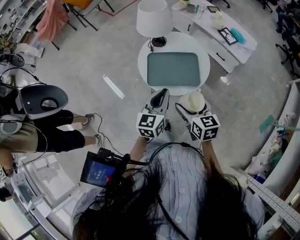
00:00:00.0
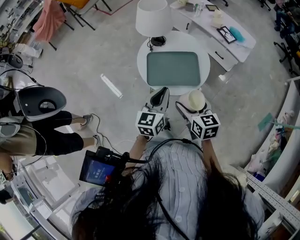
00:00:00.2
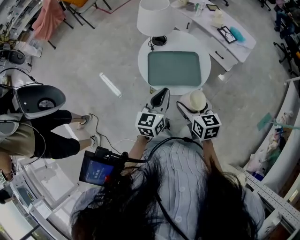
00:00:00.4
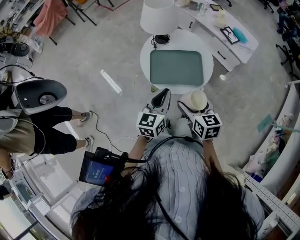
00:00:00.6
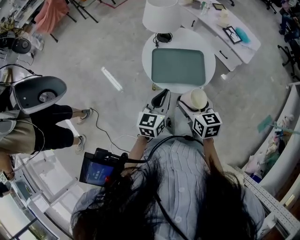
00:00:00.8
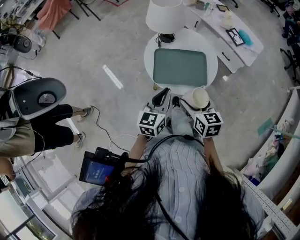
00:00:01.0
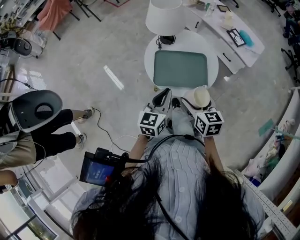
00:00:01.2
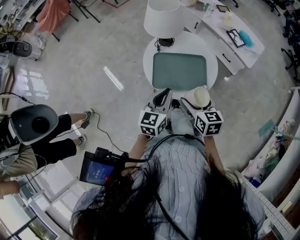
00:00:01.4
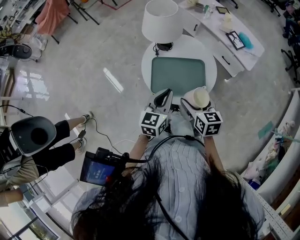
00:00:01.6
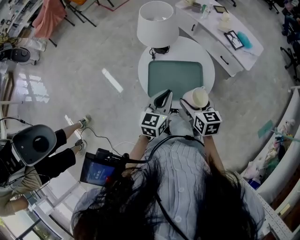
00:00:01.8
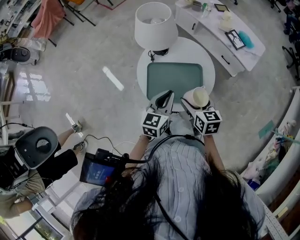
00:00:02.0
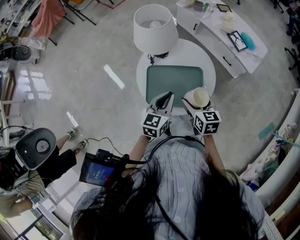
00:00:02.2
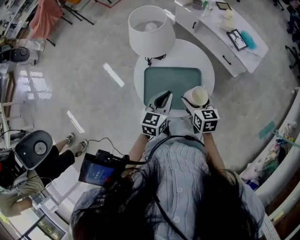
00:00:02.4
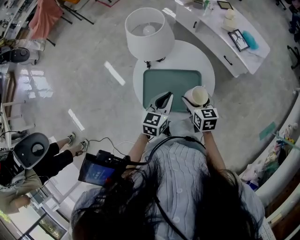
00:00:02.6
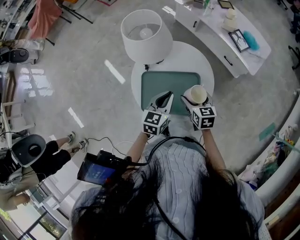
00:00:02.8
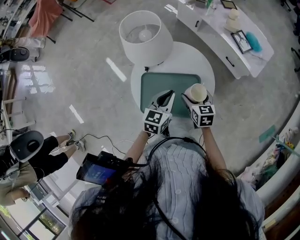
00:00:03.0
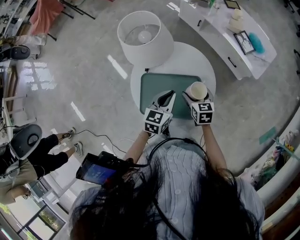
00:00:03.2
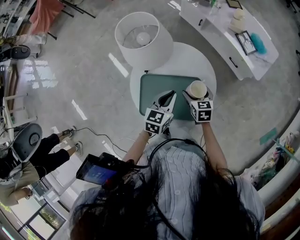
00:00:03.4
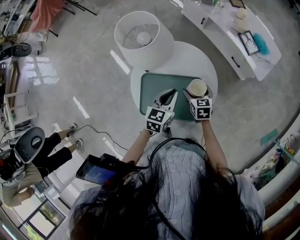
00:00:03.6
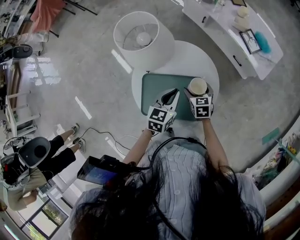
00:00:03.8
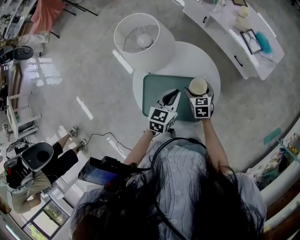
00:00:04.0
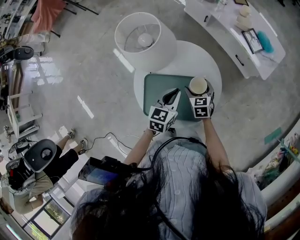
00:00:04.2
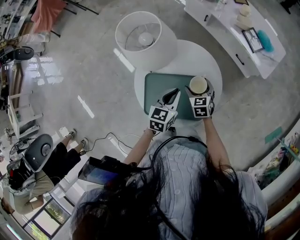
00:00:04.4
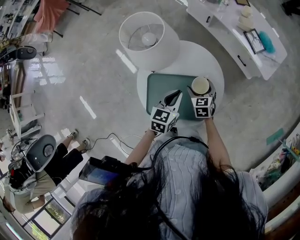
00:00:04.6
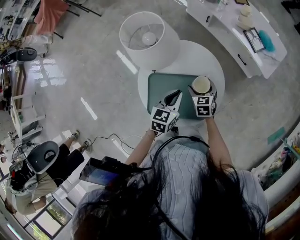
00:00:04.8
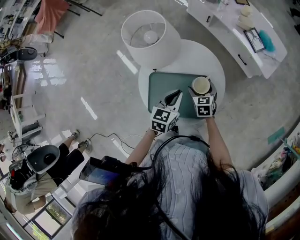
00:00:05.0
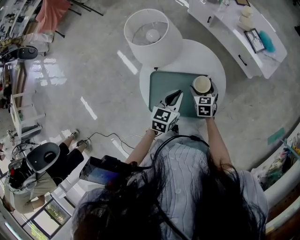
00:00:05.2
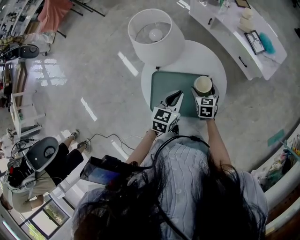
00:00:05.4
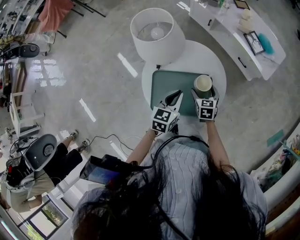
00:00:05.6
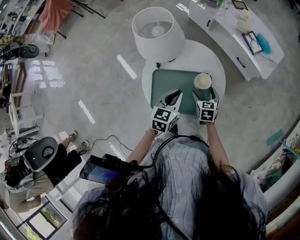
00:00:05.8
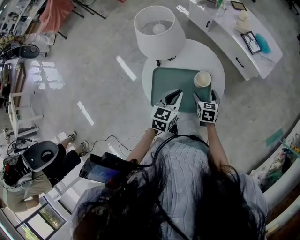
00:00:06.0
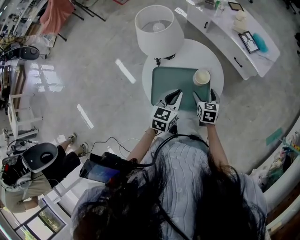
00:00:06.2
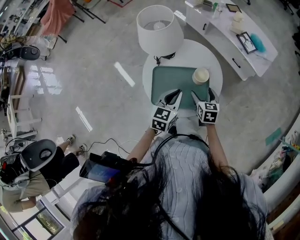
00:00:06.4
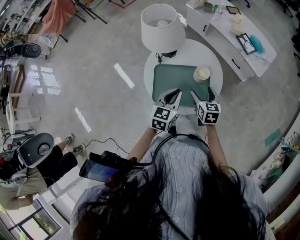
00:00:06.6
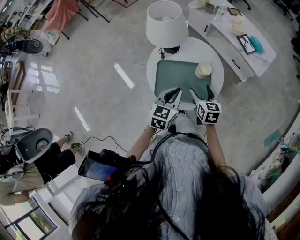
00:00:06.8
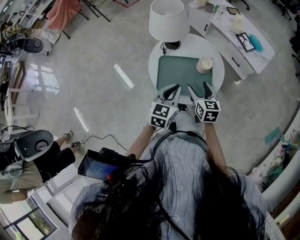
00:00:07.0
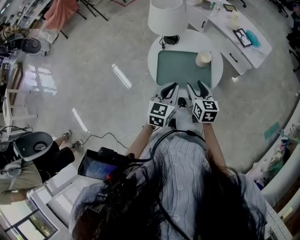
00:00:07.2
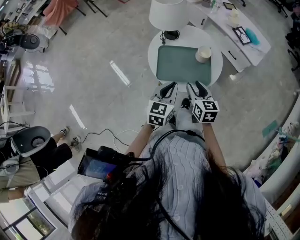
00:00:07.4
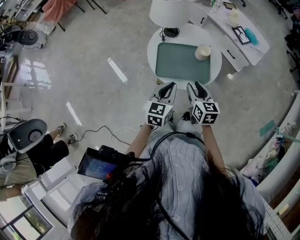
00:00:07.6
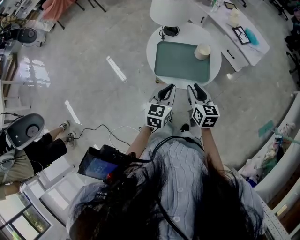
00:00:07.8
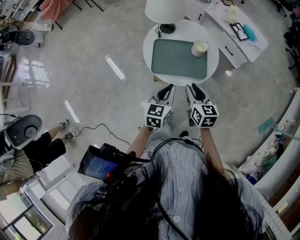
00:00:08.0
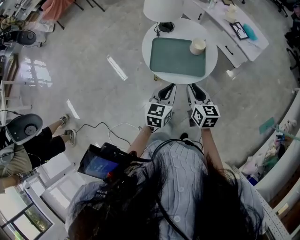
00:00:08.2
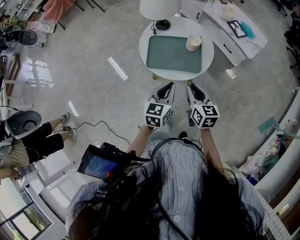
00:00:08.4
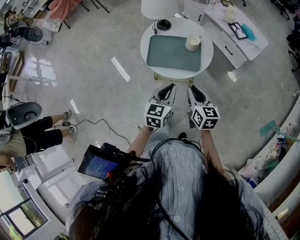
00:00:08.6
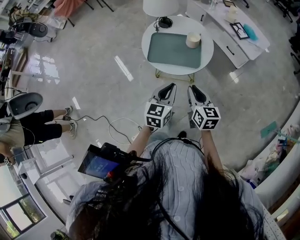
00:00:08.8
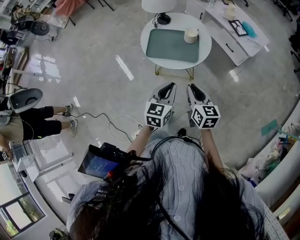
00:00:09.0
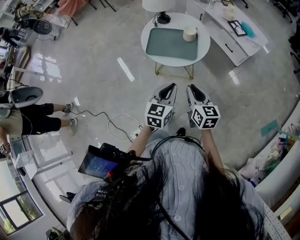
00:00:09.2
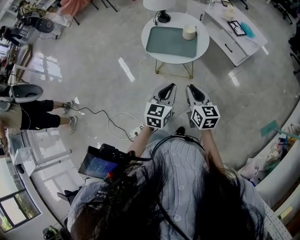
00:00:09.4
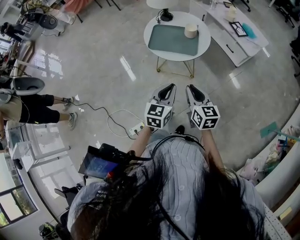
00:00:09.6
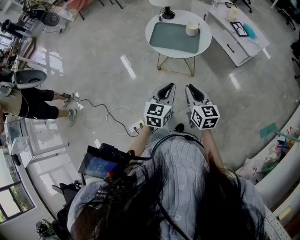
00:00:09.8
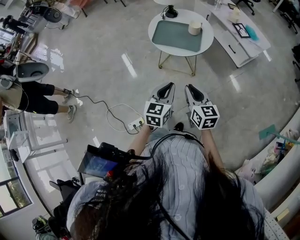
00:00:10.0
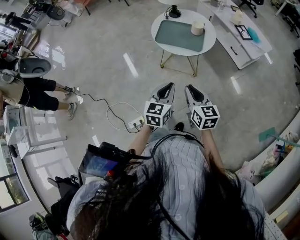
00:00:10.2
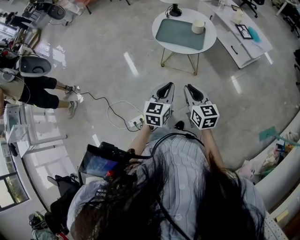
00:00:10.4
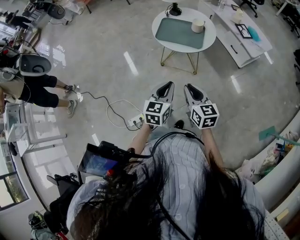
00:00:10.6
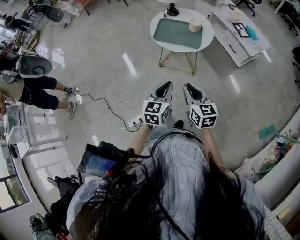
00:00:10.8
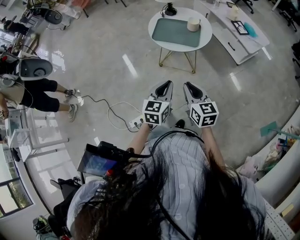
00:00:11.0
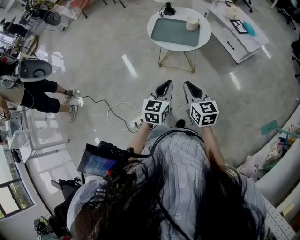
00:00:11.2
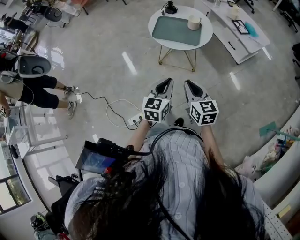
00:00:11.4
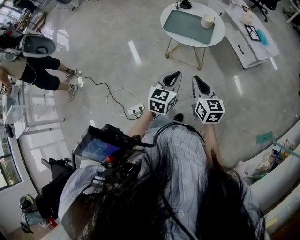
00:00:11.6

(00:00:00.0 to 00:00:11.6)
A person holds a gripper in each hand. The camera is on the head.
00:00:00.0 - 00:00:01.4: The right gripper moves forward, approximately 5 cm; the left gripper ends up about 5 cm from where it was.
00:00:01.4 - 00:00:02.8: The right gripper travels forward and downward by about 20 cm. Meanwhile the left gripper goes some 20 cm forward, downward and to the right.
00:00:02.8 - 00:00:04.4: The left gripper changes place by roughly 5 cm; the right gripper heads forward and downward, covering approximately 10 cm.
00:00:04.4 - 00:00:05.8: The left gripper moves roughly 5 cm; the right gripper travels backward by about 5 cm.
00:00:05.8 - 00:00:07.2: The left gripper travels backward and upward by approximately 15 cm; the right gripper moves upward, backward and to the left, some 20 cm, changes its angle by about 20 degrees, and closes.
00:00:07.2 - 00:00:08.8: The grippers both shift backward and to the right by approximately 15 cm. The right gripper closes up.
00:00:08.8 - 00:00:10.2: Both grippers move backward, approximately 15 cm.
00:00:10.2 - 00:00:11.6: The grippers move only a little.

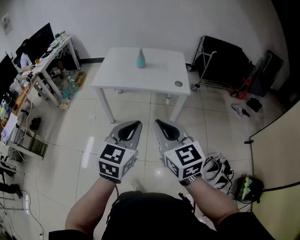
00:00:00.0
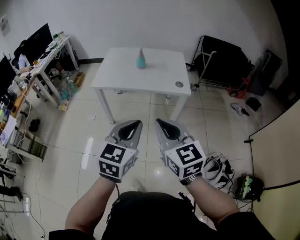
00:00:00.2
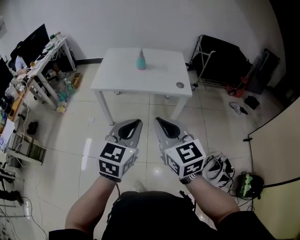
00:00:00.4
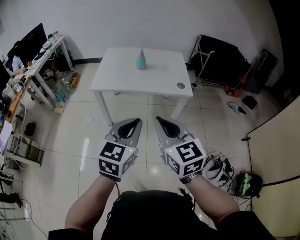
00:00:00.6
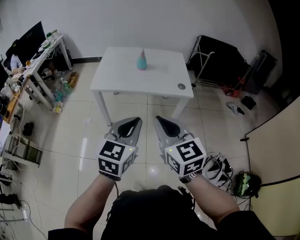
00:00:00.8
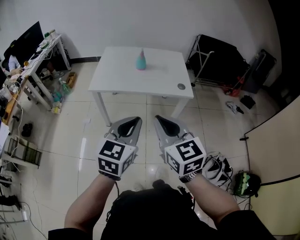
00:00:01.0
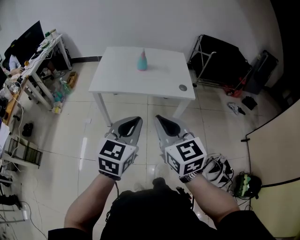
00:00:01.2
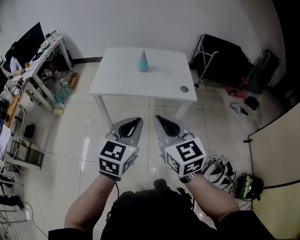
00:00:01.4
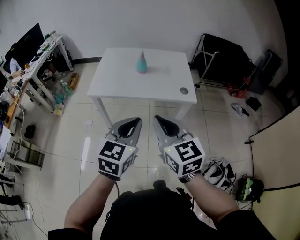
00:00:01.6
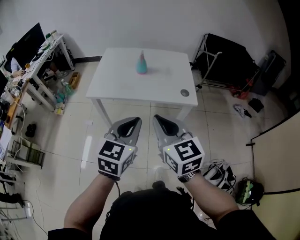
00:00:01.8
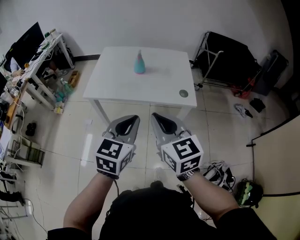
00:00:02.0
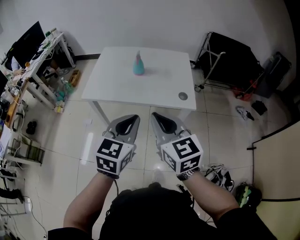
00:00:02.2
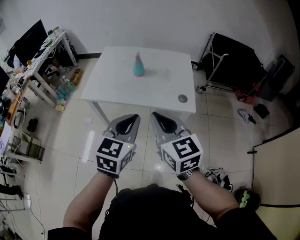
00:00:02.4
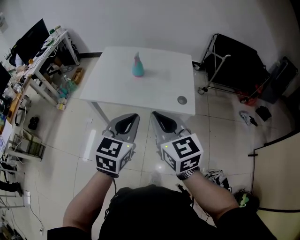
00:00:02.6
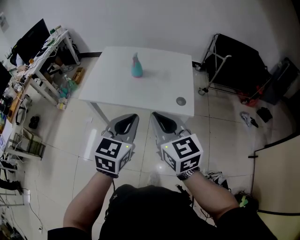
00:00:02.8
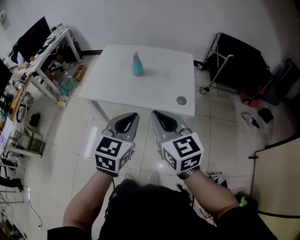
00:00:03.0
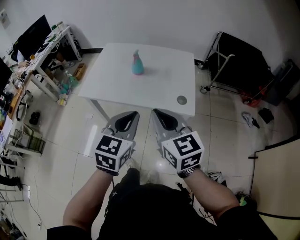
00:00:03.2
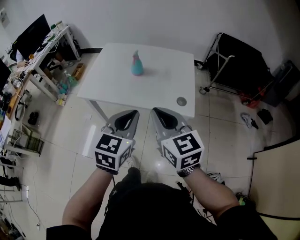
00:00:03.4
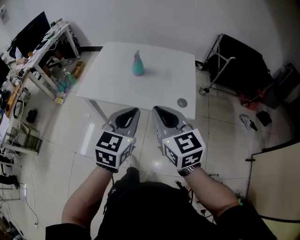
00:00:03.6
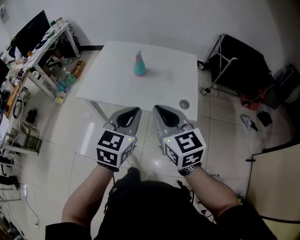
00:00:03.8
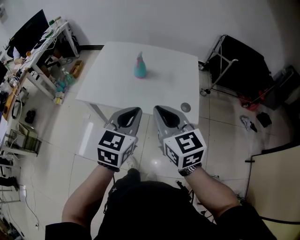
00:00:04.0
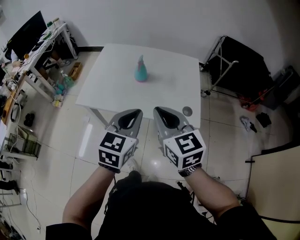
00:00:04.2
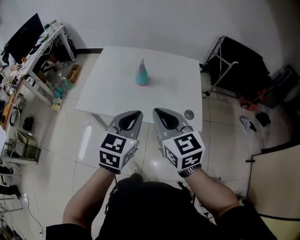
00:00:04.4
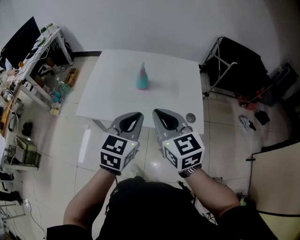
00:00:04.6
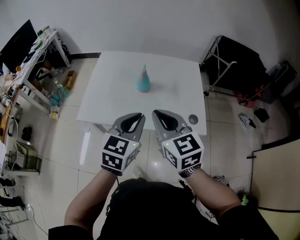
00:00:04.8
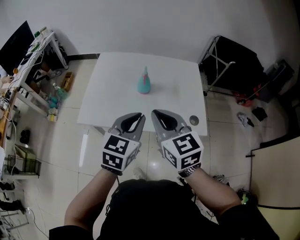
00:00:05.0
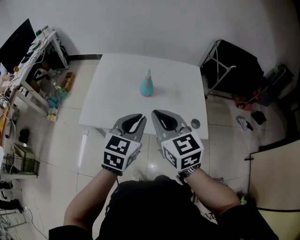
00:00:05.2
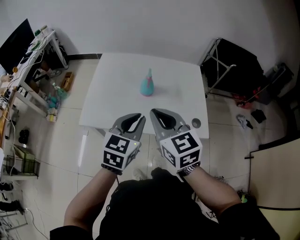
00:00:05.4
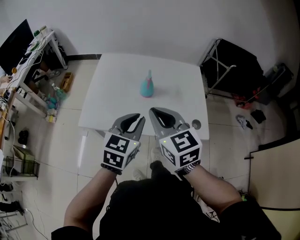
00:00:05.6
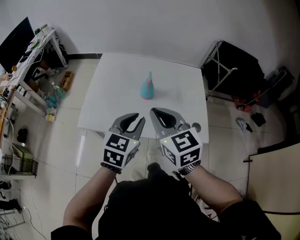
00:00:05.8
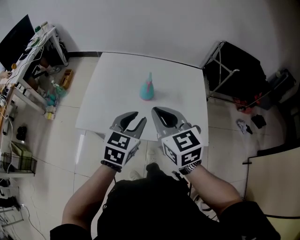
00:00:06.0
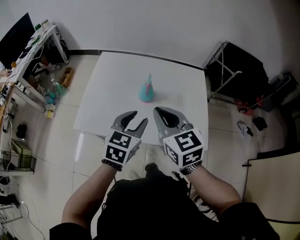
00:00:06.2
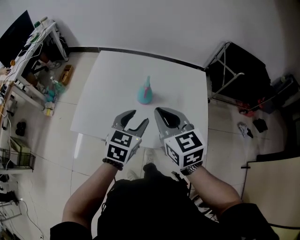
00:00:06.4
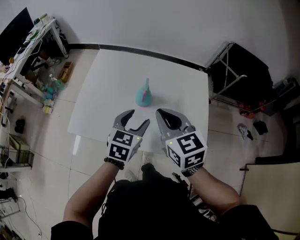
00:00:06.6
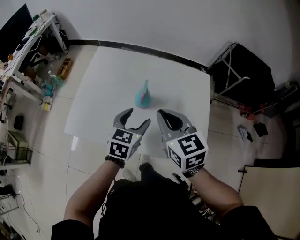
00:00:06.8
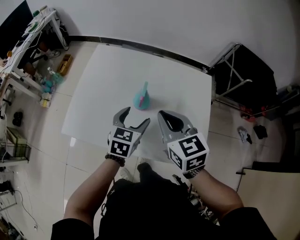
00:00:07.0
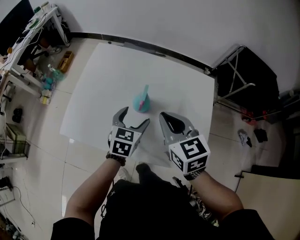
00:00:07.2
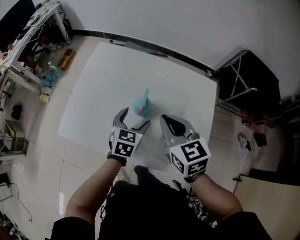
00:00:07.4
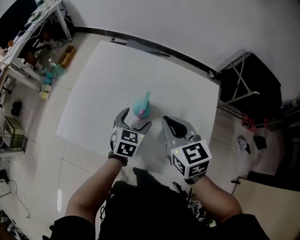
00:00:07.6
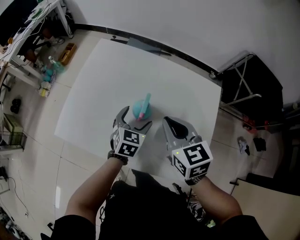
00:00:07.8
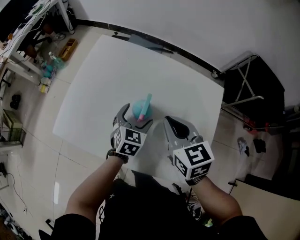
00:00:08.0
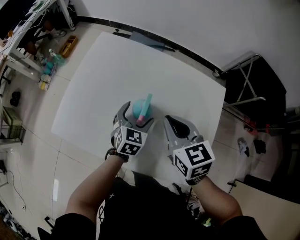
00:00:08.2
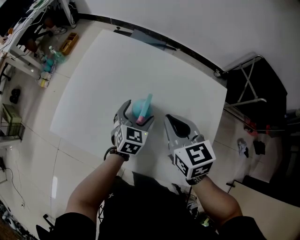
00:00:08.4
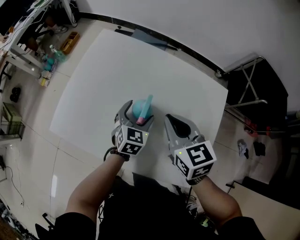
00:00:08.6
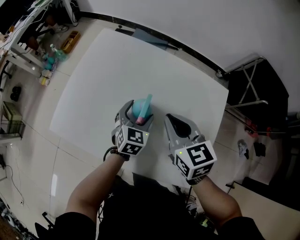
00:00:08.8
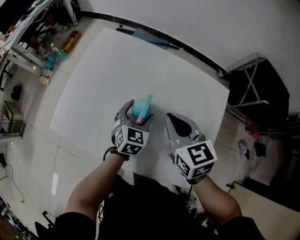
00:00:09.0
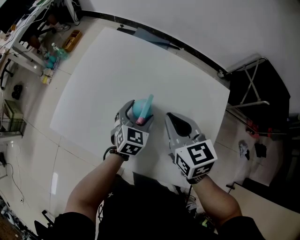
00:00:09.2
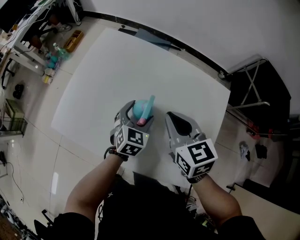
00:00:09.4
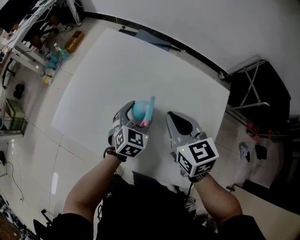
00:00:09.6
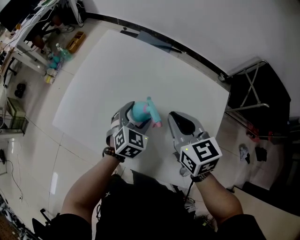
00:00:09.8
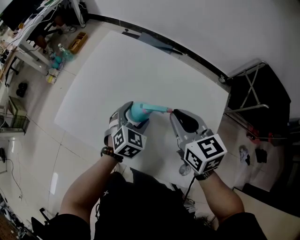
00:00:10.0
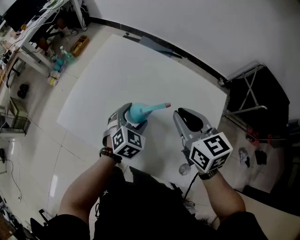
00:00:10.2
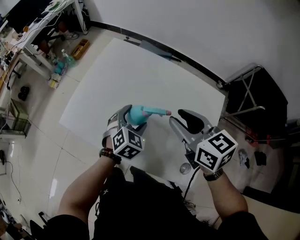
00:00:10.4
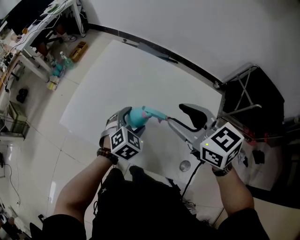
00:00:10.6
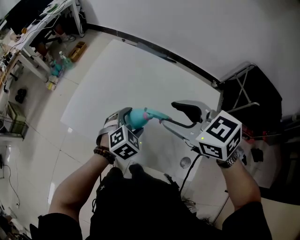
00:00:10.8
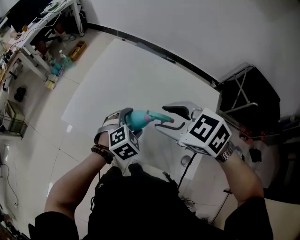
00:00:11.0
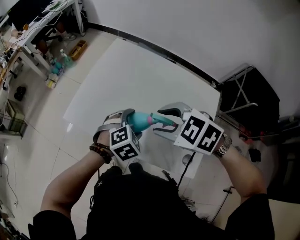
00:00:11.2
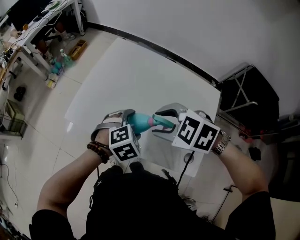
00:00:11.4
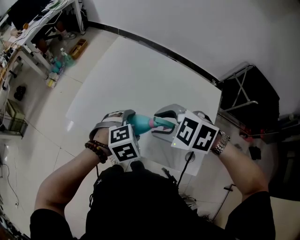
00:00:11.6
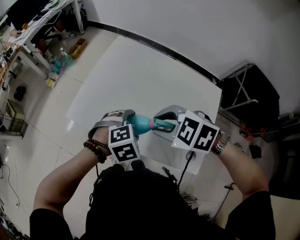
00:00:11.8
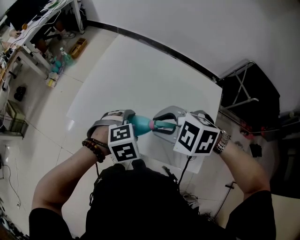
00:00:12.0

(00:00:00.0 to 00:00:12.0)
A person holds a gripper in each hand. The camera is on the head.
00:00:00.0 - 00:00:01.6: The two grippers go roughly 15 cm forward and to the left.
00:00:01.6 - 00:00:03.0: Both grippers travel together forward and to the right, approximately 15 cm.
00:00:03.0 - 00:00:04.4: The grippers both shift forward by about 10 cm.
00:00:04.4 - 00:00:06.0: The right gripper travels forward and to the left by roughly 10 cm, while the left gripper shifts approximately 10 cm forward.
00:00:06.0 - 00:00:07.6: The right gripper is displaced forward, downward and to the right by approximately 20 cm; the left gripper travels downward and forward by approximately 25 cm, and opens its fingers.
00:00:07.6 - 00:00:09.0: The right gripper shifts by some 5 cm.
00:00:09.0 - 00:00:10.4: The left gripper ends up roughly 5 cm from where it was, while the right gripper moves upward, approximately 10 cm, and opens up.
00:00:10.4 - 00:00:12.0: The left gripper changes place by some 15 cm, and swivels roughly 40 degrees. The right gripper ends up approximately 15 cm from where it was, and tips its fingers downward by some 30 degrees.
